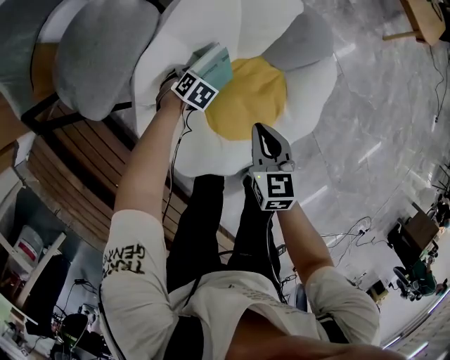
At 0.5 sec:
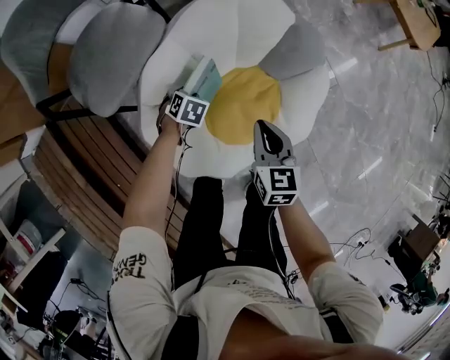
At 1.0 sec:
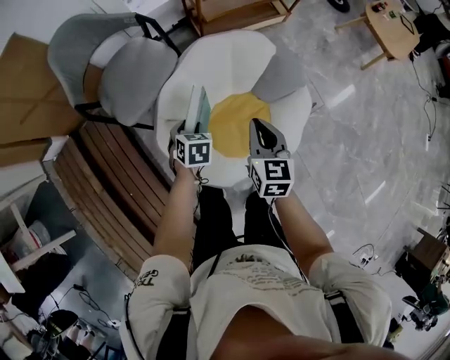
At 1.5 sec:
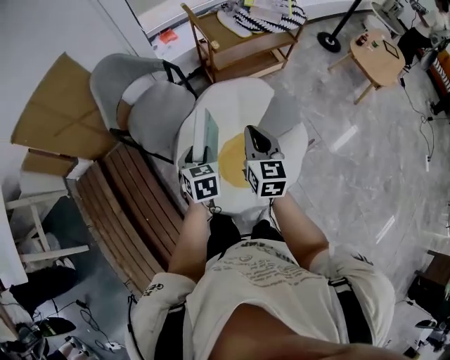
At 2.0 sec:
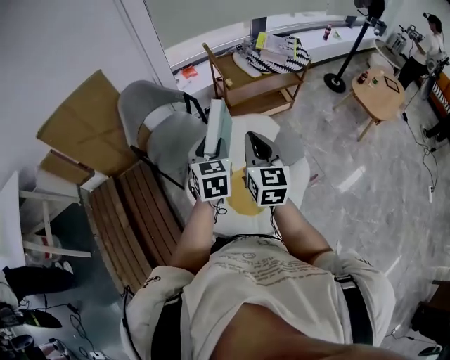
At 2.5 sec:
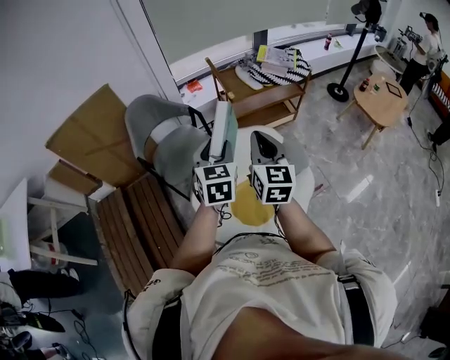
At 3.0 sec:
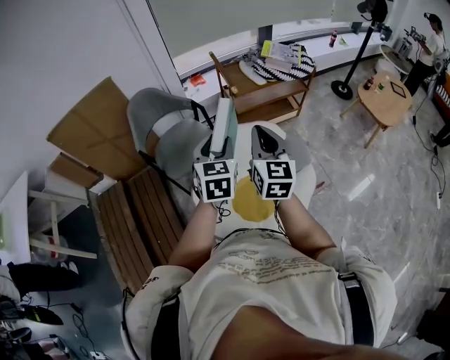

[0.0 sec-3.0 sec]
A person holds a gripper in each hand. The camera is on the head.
0.0 sec to 1.5 sec: The two grippers go some 40 cm upward. The left gripper tips its fingers upward by some 30 degrees. The right gripper turns by about 20 degrees.
1.5 sec to 3.0 sec: Both grippers move upward, some 20 cm. The left gripper changes its angle by some 20 degrees.

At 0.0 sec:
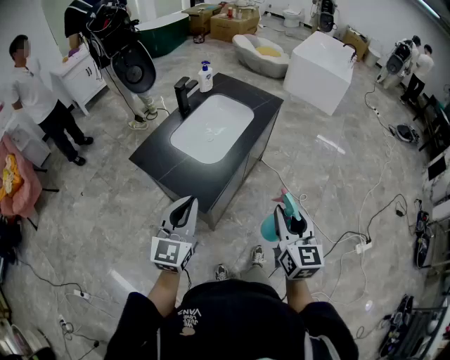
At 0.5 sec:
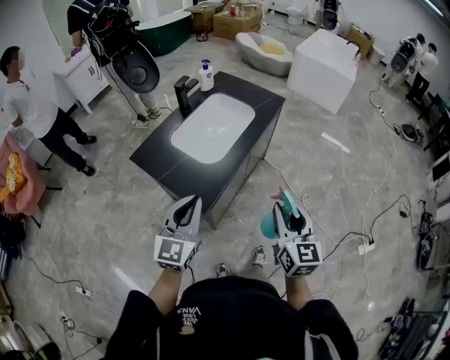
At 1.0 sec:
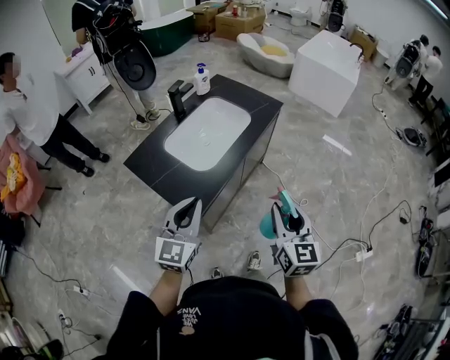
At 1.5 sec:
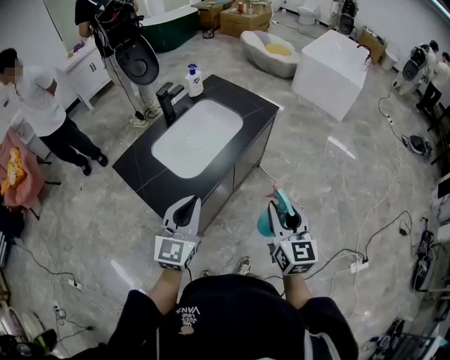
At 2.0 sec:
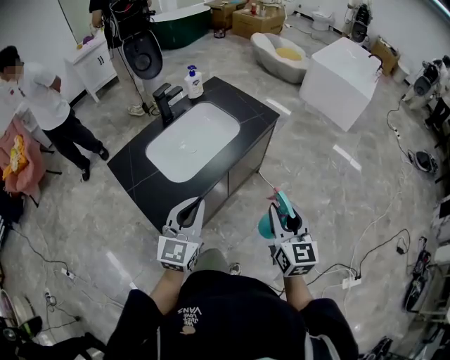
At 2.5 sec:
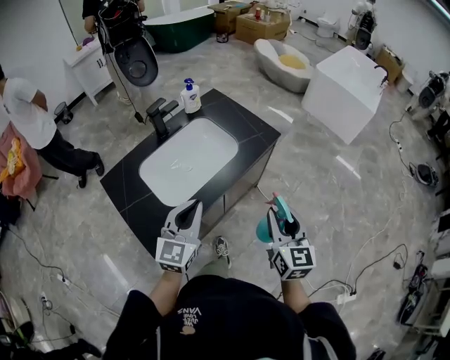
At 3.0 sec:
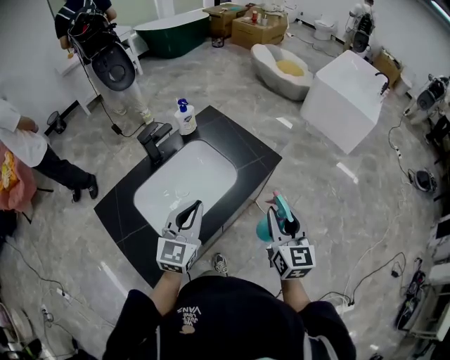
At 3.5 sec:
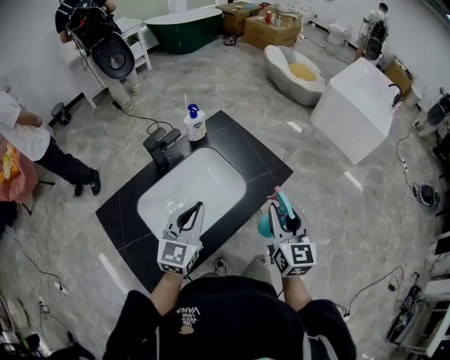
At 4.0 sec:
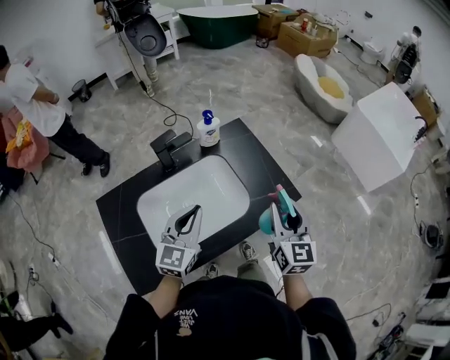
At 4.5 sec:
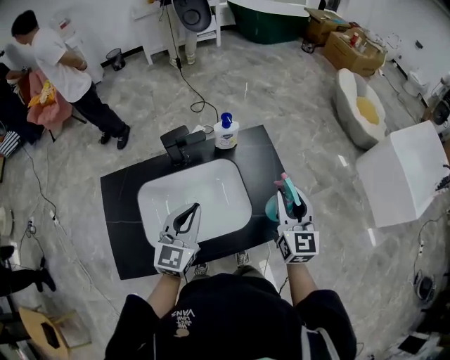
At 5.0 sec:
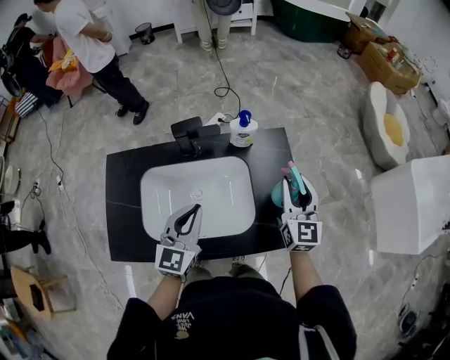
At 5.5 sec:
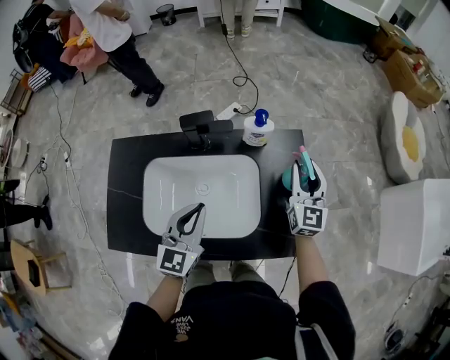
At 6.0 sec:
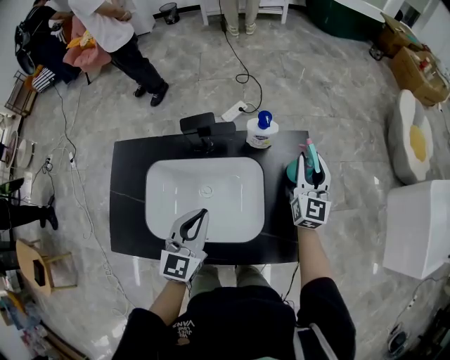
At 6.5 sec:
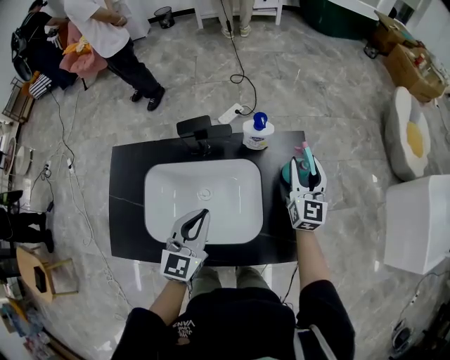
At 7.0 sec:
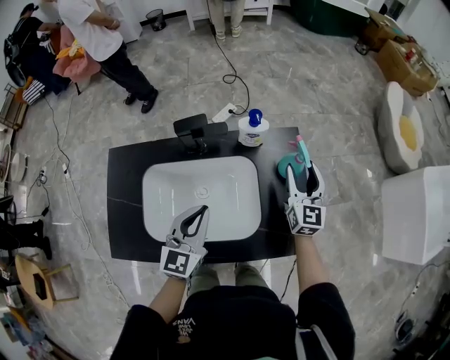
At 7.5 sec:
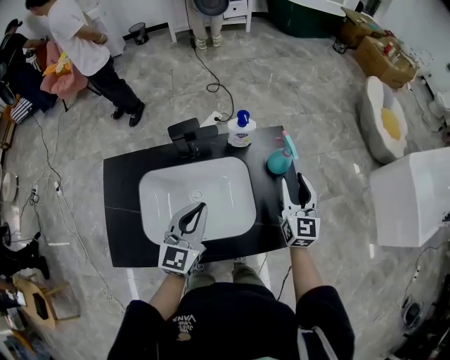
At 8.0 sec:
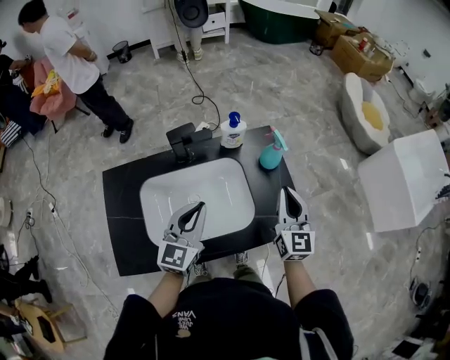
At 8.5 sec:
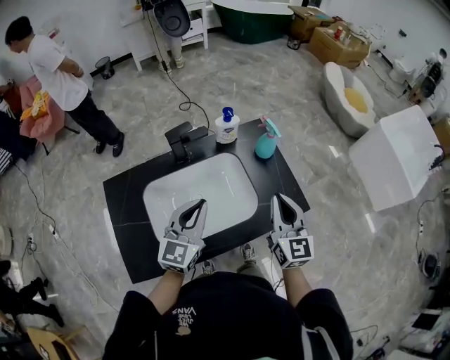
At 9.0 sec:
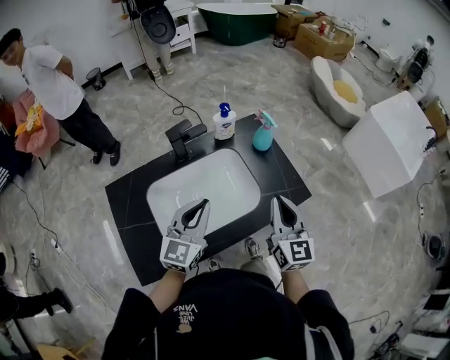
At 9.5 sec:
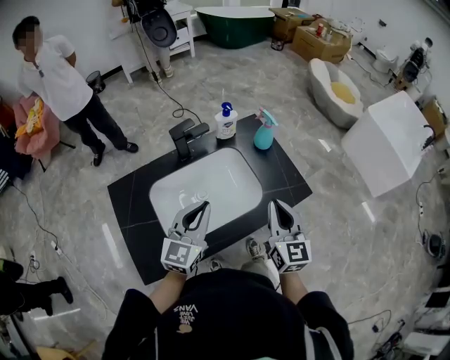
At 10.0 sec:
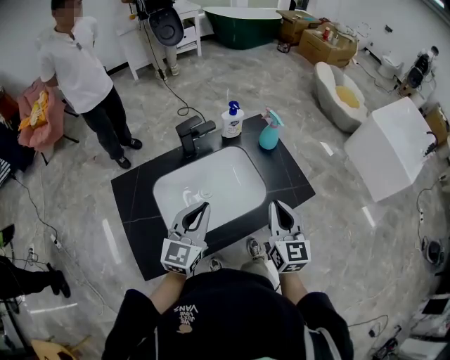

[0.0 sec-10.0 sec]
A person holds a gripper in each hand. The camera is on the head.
0.0 sec to 2.0 sec: The right gripper heads forward and to the right, covering about 25 cm, while the left gripper moves to the right and forward, roughly 25 cm.
2.0 sec to 4.0 sec: Both grippers travel together forward, about 35 cm.
4.0 sec to 6.0 sec: The left gripper moves downward, approximately 5 cm, and changes its angle by roughly 30 degrees, while the right gripper ends up approximately 35 cm from where it was, and rotates roughly 20 degrees.
6.0 sec to 8.0 sec: The right gripper shifts approximately 20 cm backward, and closes its fingers. Meanwhile the left gripper is displaced upward by approximately 5 cm.
8.0 sec to 10.0 sec: The right gripper heads backward, covering approximately 15 cm, while the left gripper is displaced backward by approximately 10 cm.

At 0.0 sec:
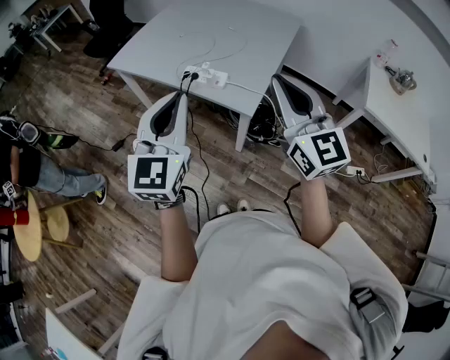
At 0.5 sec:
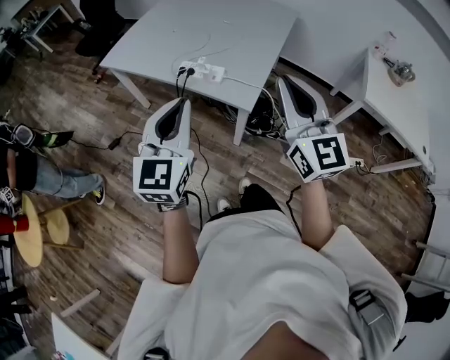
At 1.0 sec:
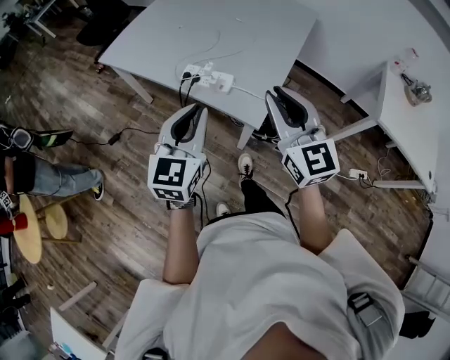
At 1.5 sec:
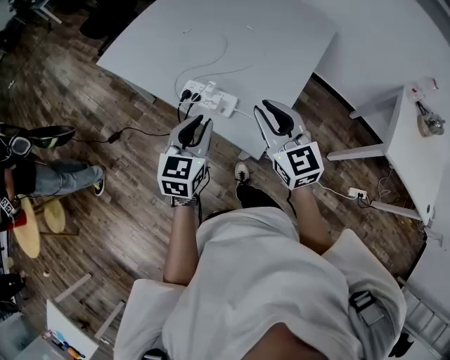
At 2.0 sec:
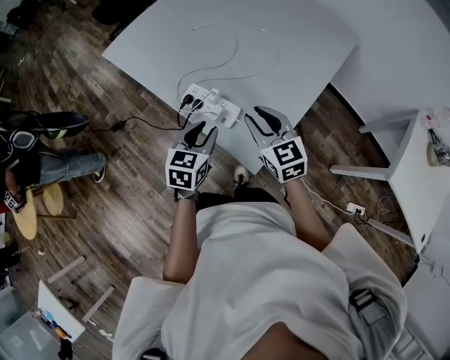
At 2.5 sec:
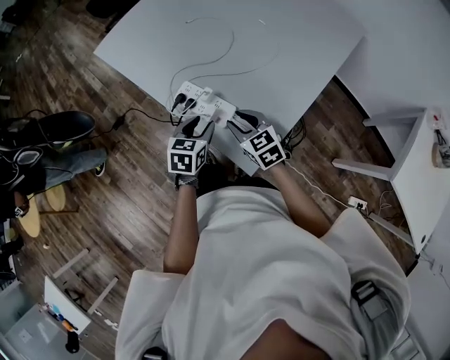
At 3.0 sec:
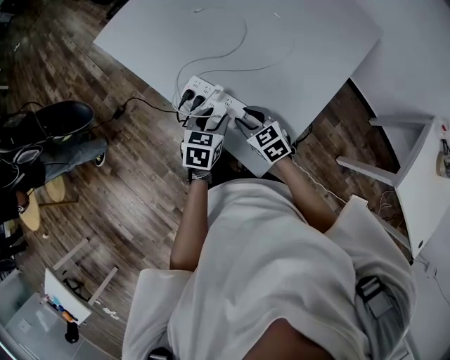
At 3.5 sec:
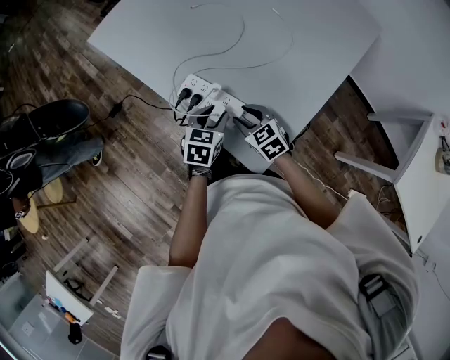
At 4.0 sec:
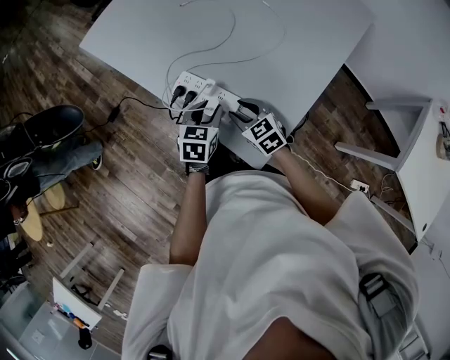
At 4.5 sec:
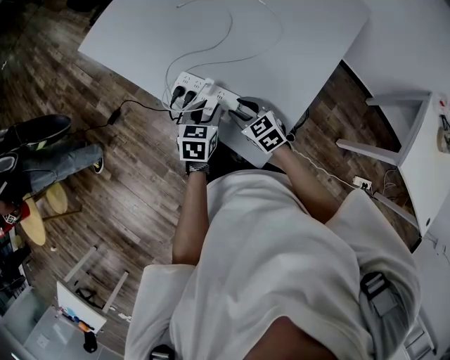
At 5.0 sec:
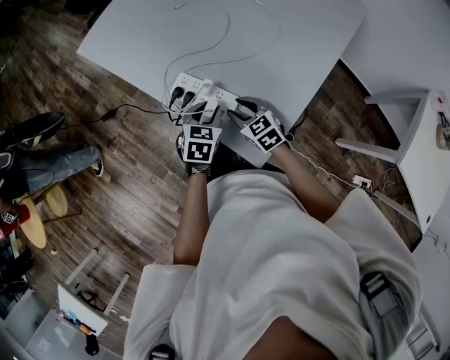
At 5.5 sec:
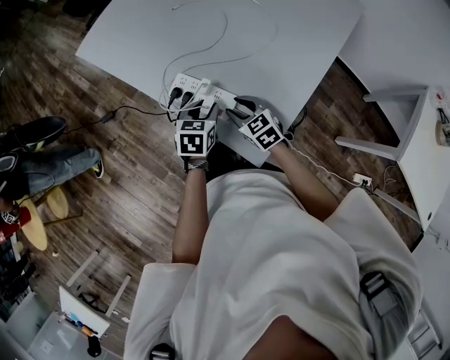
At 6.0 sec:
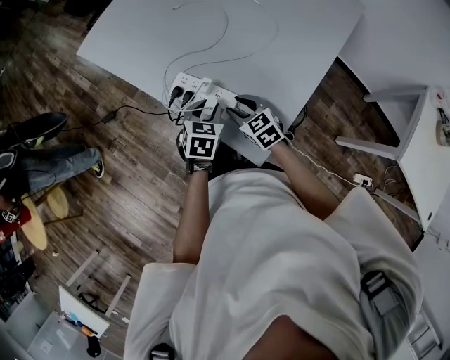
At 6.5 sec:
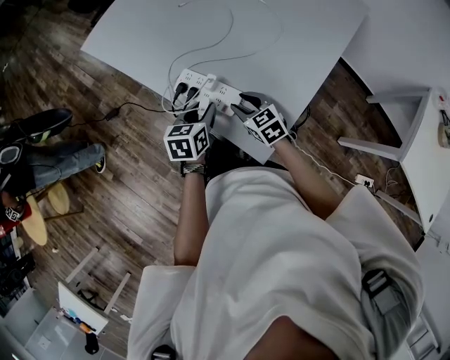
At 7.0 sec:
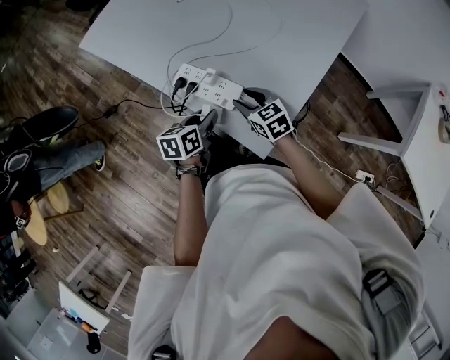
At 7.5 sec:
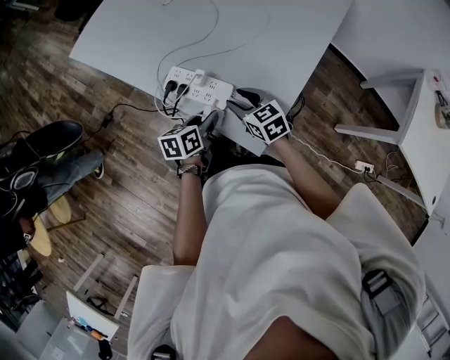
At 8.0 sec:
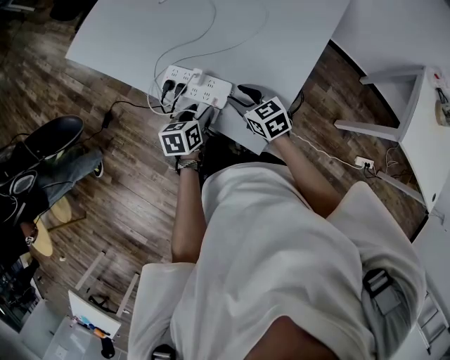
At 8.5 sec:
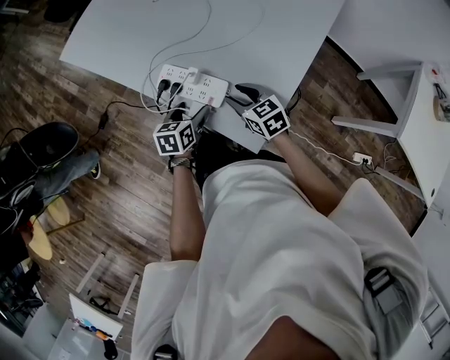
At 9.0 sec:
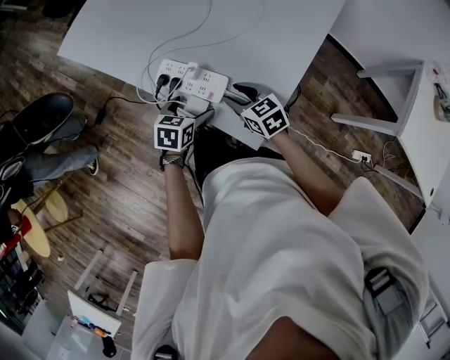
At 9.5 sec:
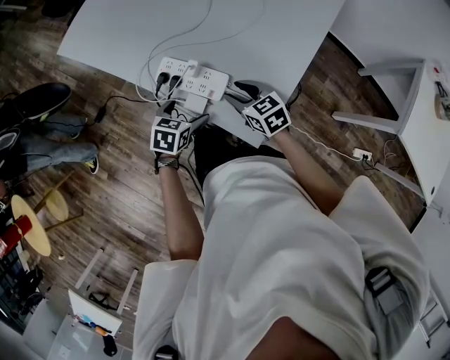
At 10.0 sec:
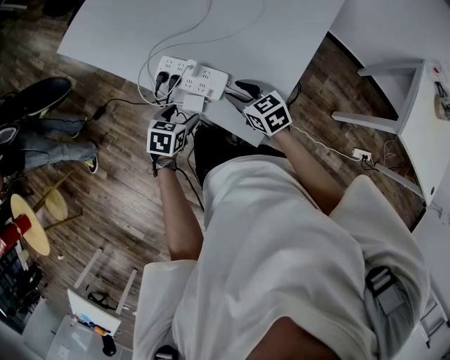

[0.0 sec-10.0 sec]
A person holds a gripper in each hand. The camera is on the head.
0.0 sec to 2.0 sec: The two grippers go approximately 40 cm forward and downward. The right gripper swivels some 30 degrees, and opens up, while the left gripper tips its fingers downward by about 30 degrees.
2.0 sec to 4.0 sec: The right gripper heads downward, covering about 20 cm, and swivels about 20 degrees. The left gripper heads downward and forward, covering approximately 15 cm.
4.0 sec to 6.0 sec: There are only small adjustments of the grippers.
6.0 sec to 8.0 sec: The left gripper shifts by some 5 cm, and turns by roughly 30 degrees.
8.0 sec to 10.0 sec: The left gripper changes place by approximately 5 cm, and swivels some 20 degrees.

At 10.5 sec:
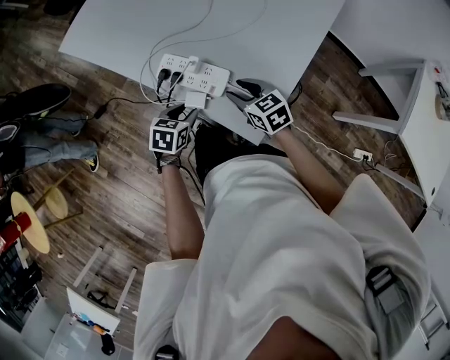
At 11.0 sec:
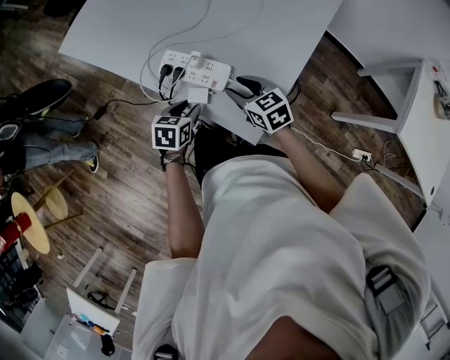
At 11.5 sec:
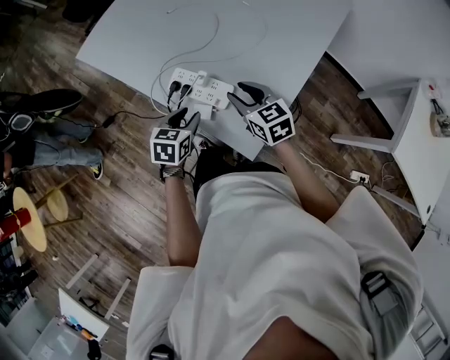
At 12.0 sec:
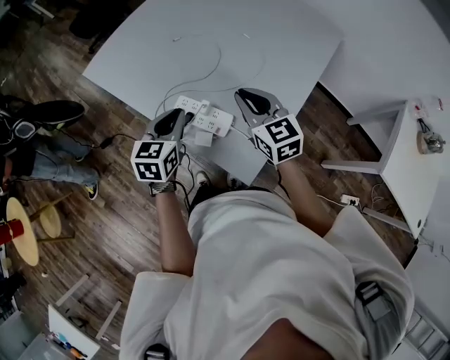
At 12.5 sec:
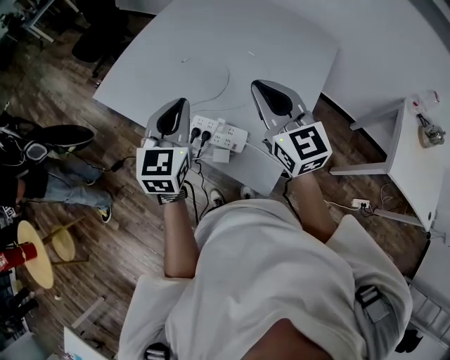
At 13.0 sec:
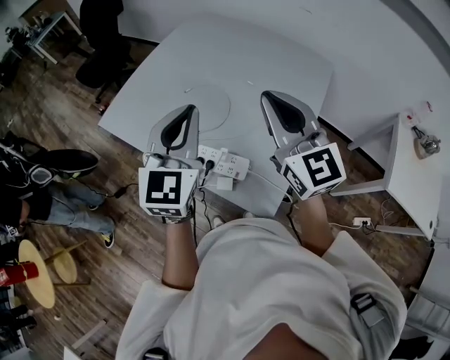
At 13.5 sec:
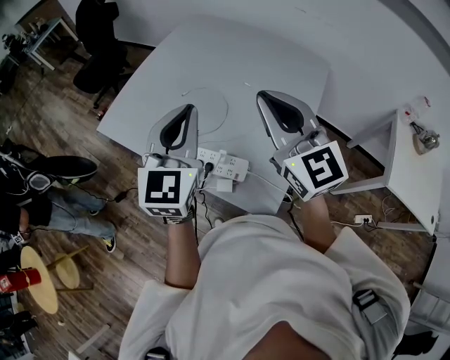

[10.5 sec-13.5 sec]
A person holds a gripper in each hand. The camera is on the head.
10.5 sec to 12.0 sec: The grippers both shift upward by roughly 25 cm. The right gripper swivels roughly 30 degrees, and closes, while the left gripper turns by some 30 degrees.
12.0 sec to 13.5 sec: Both grippers travel together upward, approximately 25 cm. The right gripper swivels about 30 degrees, while the left gripper turns by roughly 30 degrees.
